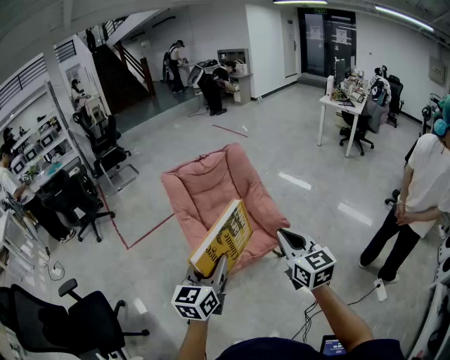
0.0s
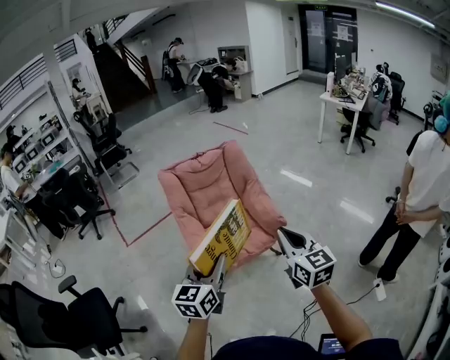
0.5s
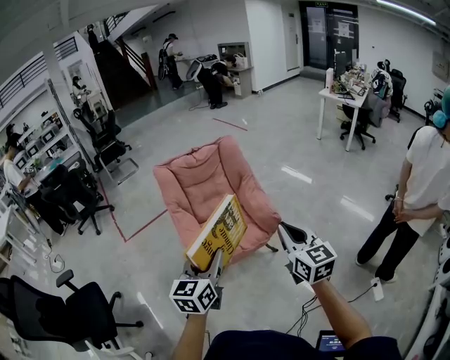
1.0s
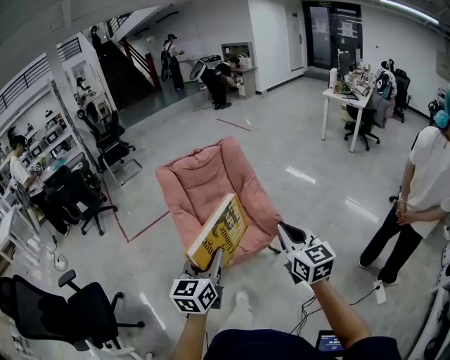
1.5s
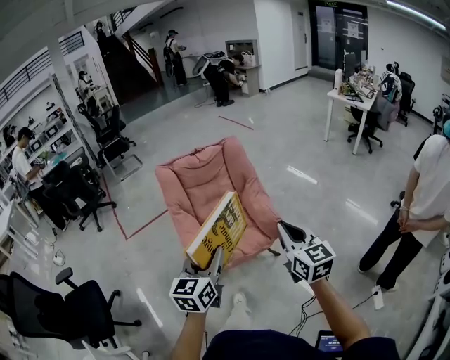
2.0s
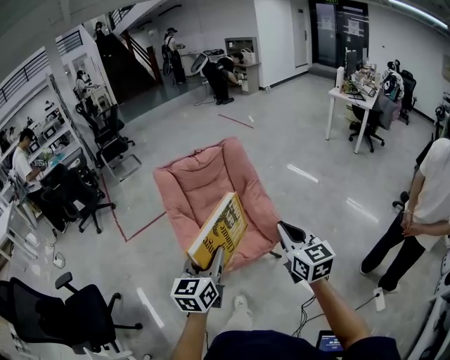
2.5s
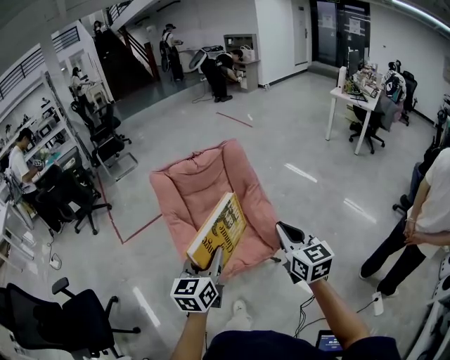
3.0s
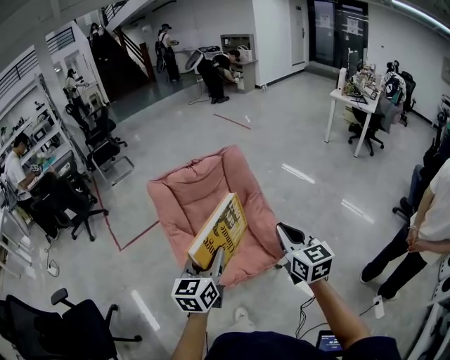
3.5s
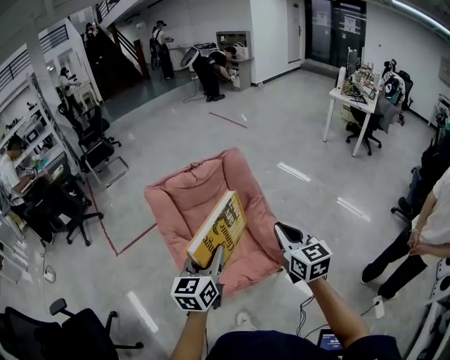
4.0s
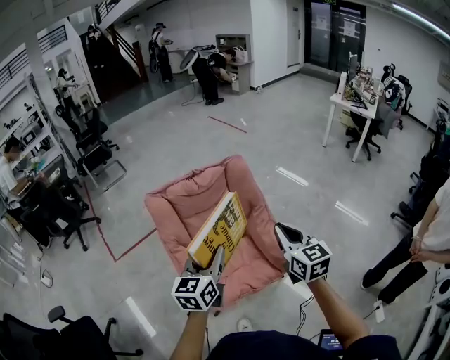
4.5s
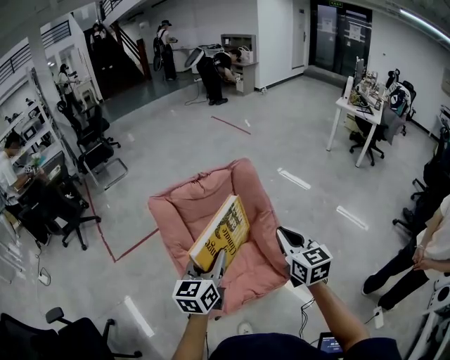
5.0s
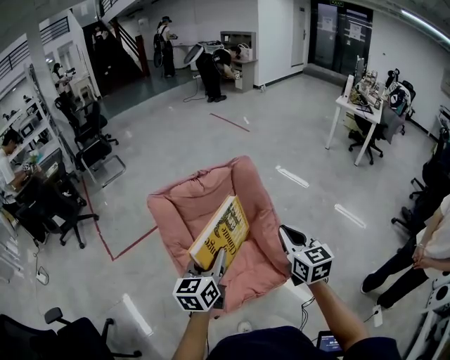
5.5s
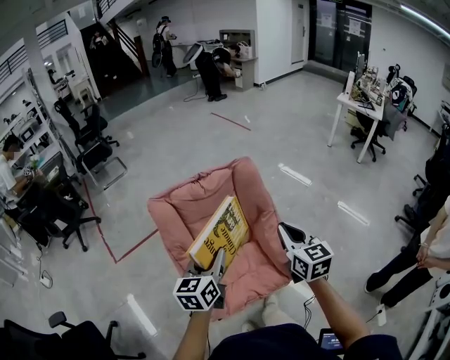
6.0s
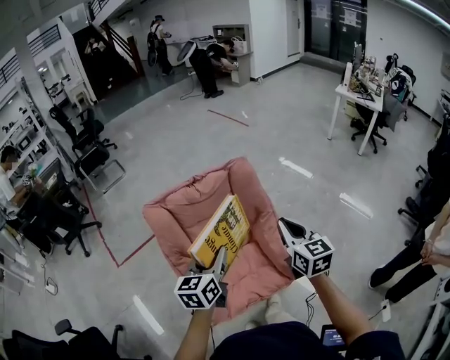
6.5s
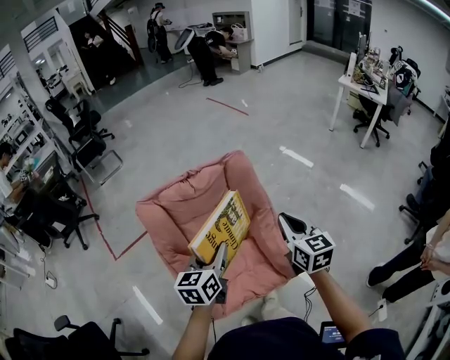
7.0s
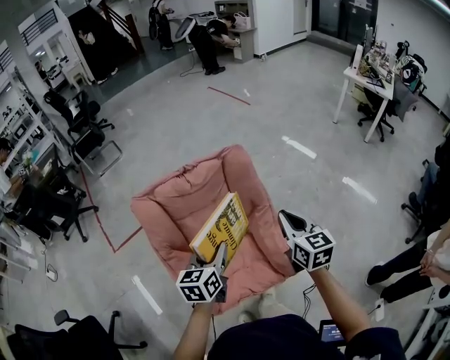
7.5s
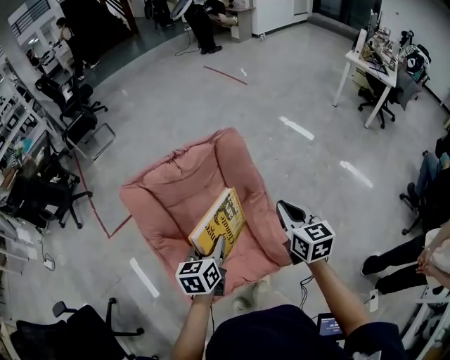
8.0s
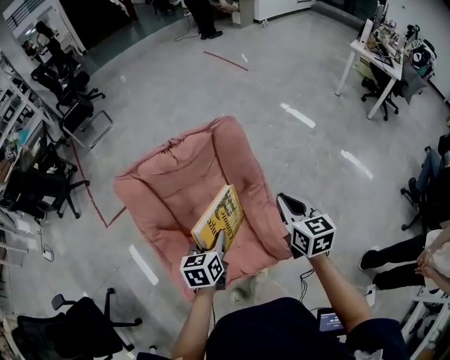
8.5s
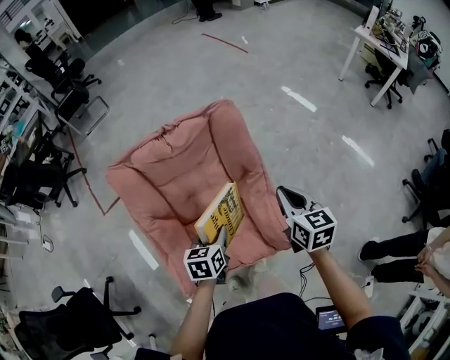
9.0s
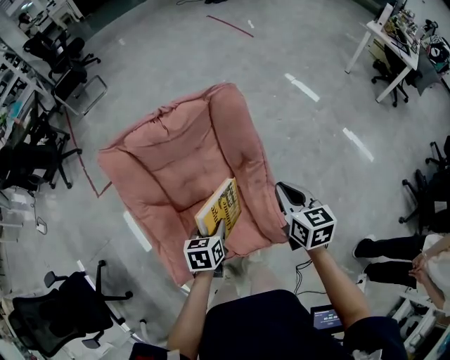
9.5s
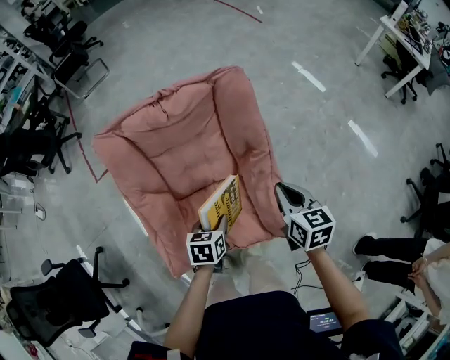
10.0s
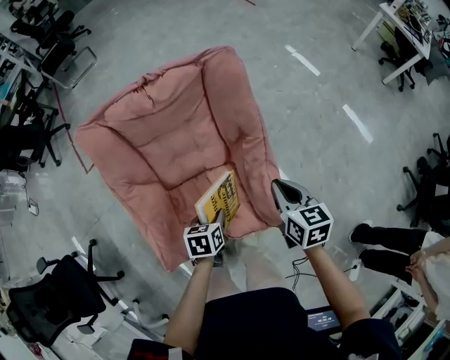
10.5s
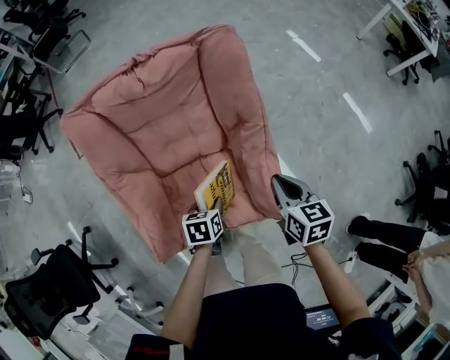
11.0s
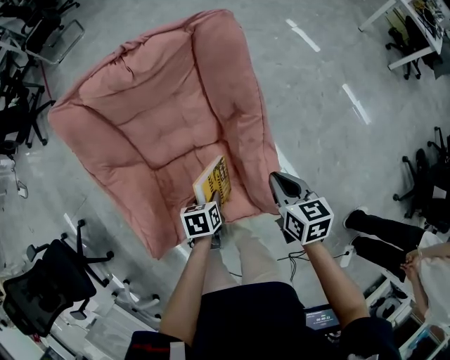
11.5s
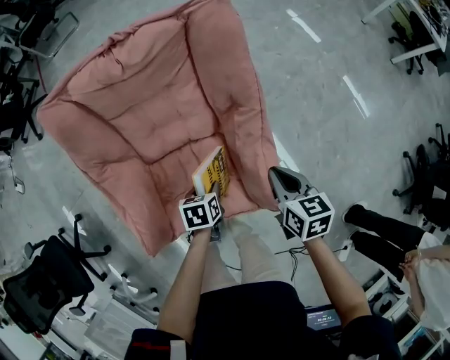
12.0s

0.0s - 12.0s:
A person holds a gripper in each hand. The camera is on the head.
0.0s - 2.0s: Both grippers move to the right, approximately 5 cm.
2.0s - 4.0s: Both grippers travel together forward, approximately 20 cm.
4.0s - 6.0s: The right gripper moves forward, roughly 10 cm. Meanwhile the left gripper heads forward and to the left, covering some 10 cm.
6.0s - 8.0s: The left gripper shifts approximately 15 cm downward, forward and to the right. Meanwhile the right gripper moves forward, to the right and downward, roughly 15 cm.
8.0s - 10.0s: The grippers both shift downward by approximately 15 cm. The left gripper turns by roughly 20 degrees.
10.0s - 12.0s: The two grippers go about 15 cm downward.

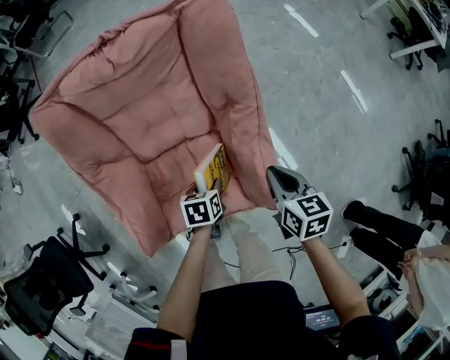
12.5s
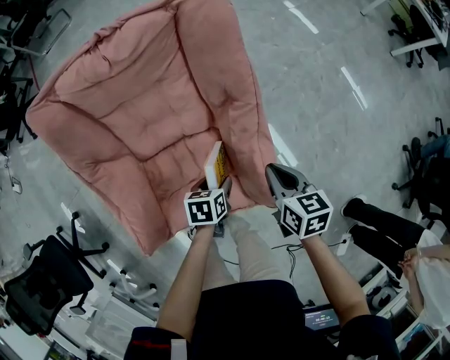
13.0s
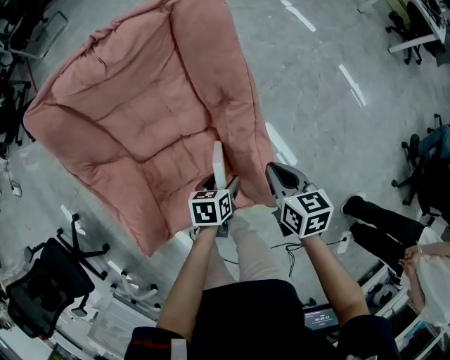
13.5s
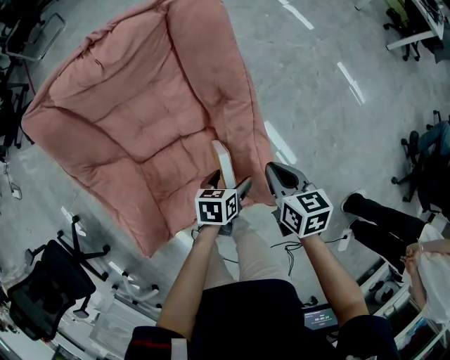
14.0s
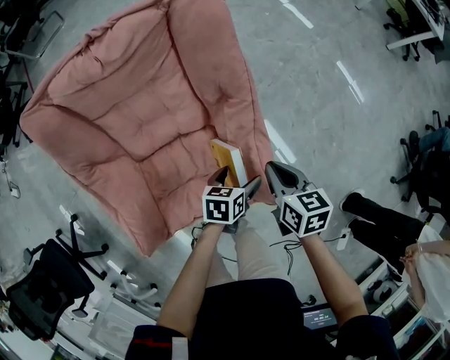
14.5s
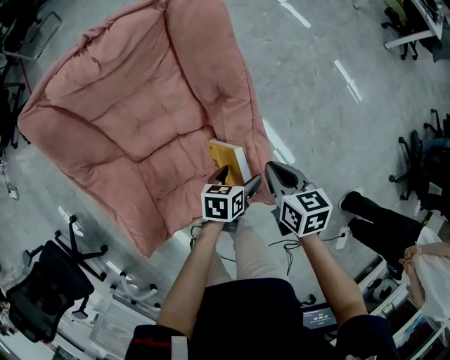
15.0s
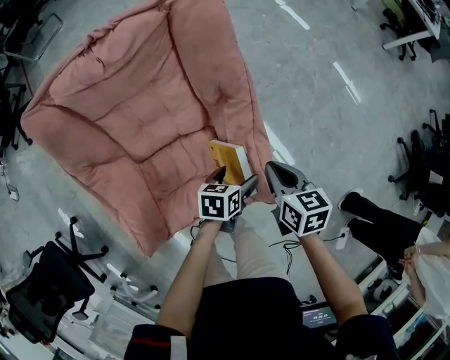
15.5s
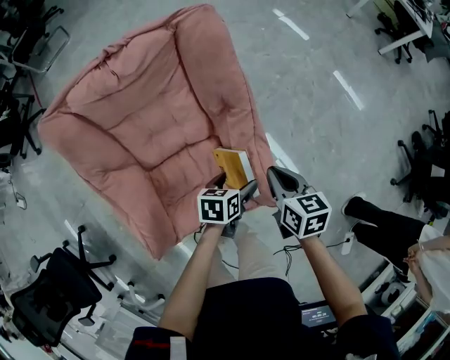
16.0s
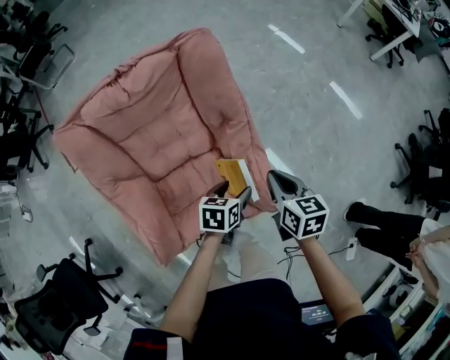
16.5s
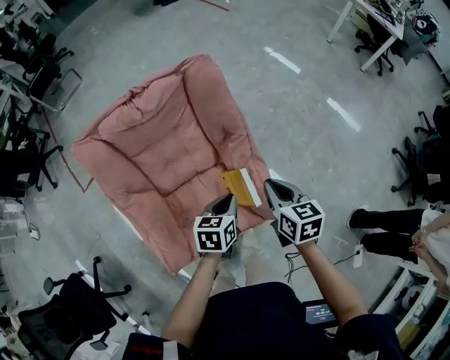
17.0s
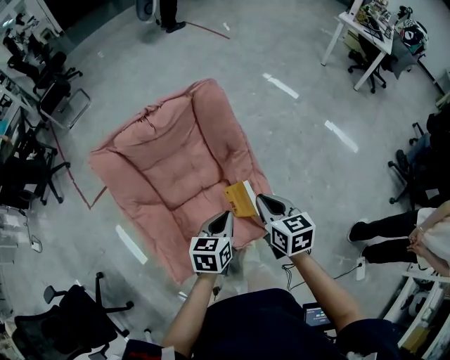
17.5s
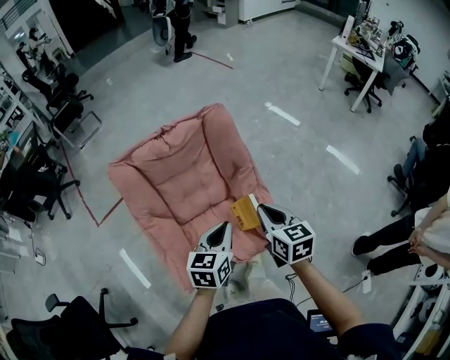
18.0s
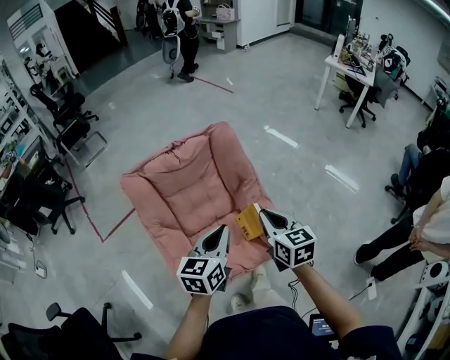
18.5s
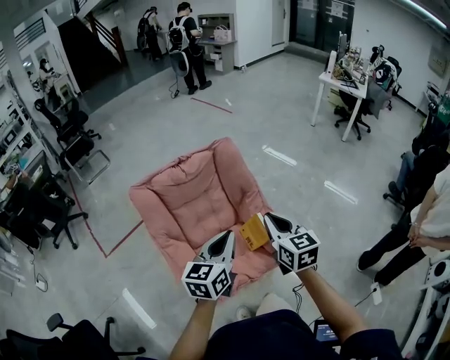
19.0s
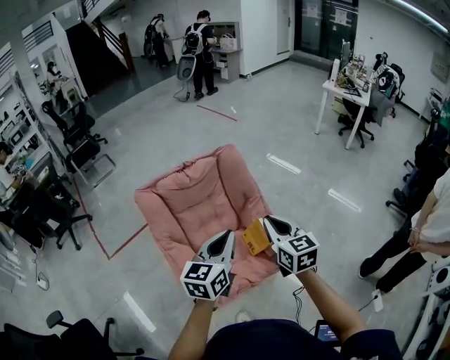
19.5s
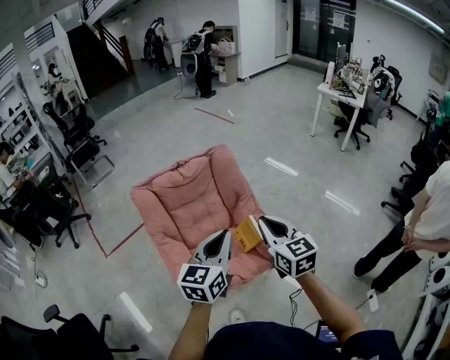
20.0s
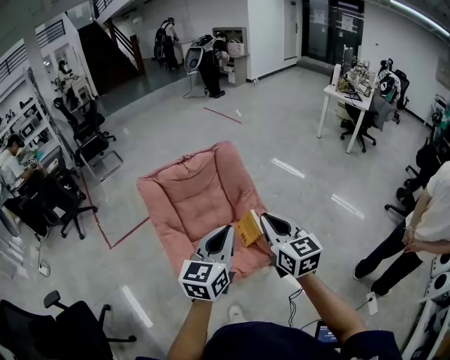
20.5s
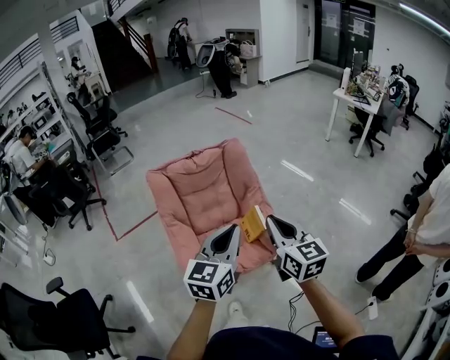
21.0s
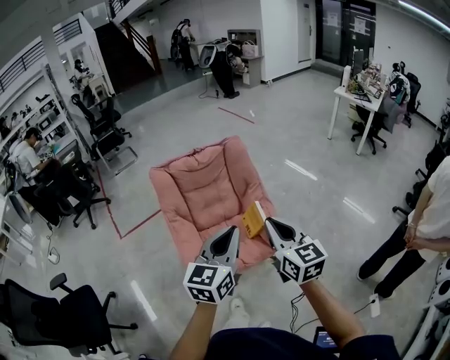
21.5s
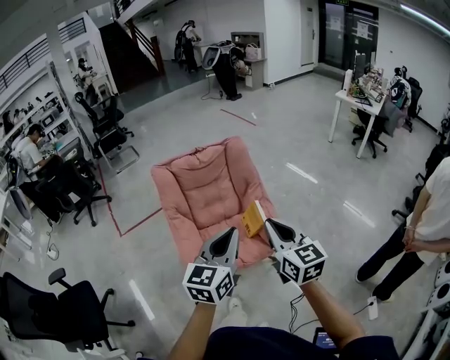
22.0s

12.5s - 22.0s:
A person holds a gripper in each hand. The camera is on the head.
12.5s - 14.5s: The left gripper goes some 10 cm to the right, turns by roughly 20 degrees, and opens.
14.5s - 16.5s: Both grippers move upward, about 10 cm.
16.5s - 18.0s: The right gripper goes approximately 20 cm upward, backward and to the left. The left gripper shifts approximately 25 cm upward and to the left, rotates roughly 30 degrees, and closes.
18.0s - 20.0s: The grippers both shift upward and backward by roughly 20 cm. The left gripper changes its angle by approximately 20 degrees.
20.0s - 22.0s: The two grippers go some 15 cm backward.

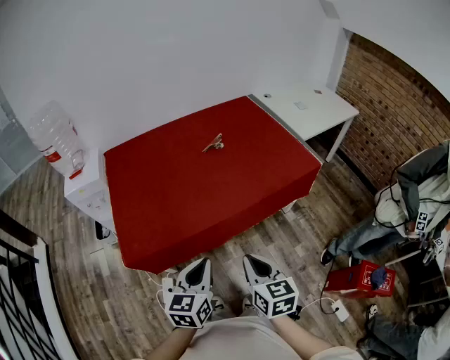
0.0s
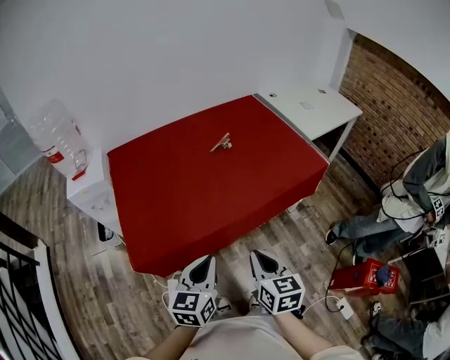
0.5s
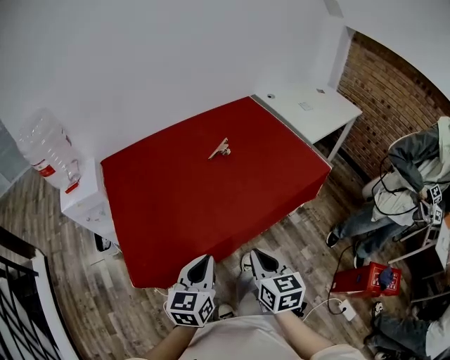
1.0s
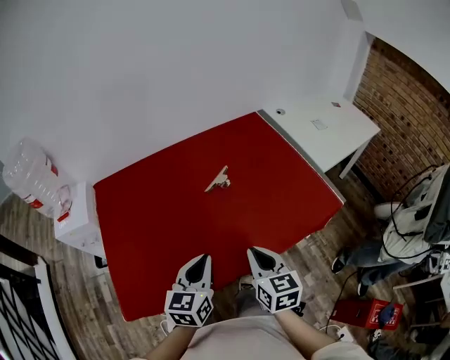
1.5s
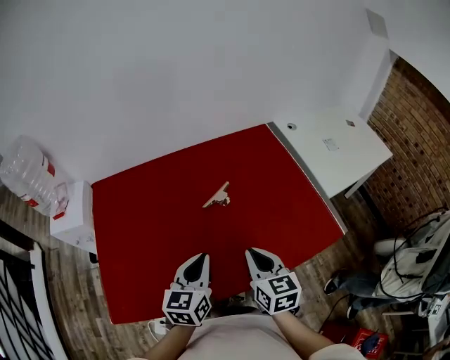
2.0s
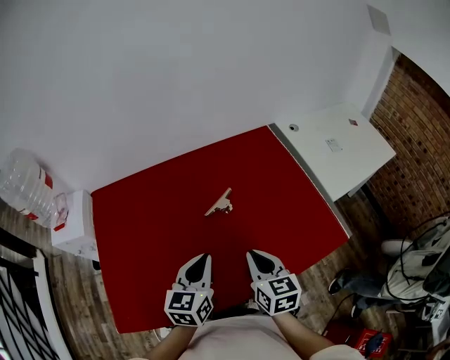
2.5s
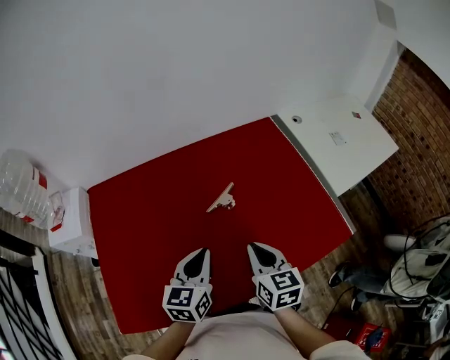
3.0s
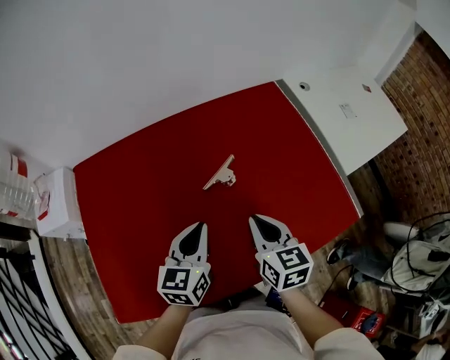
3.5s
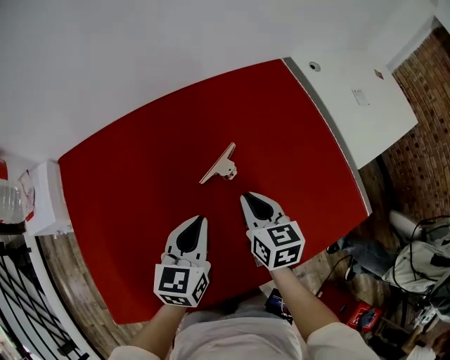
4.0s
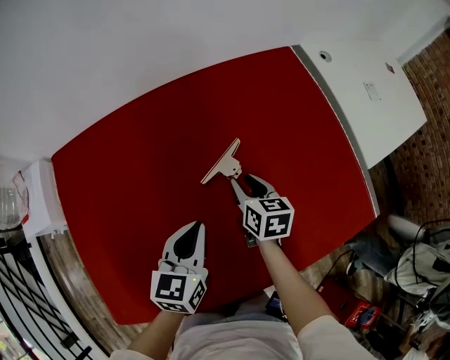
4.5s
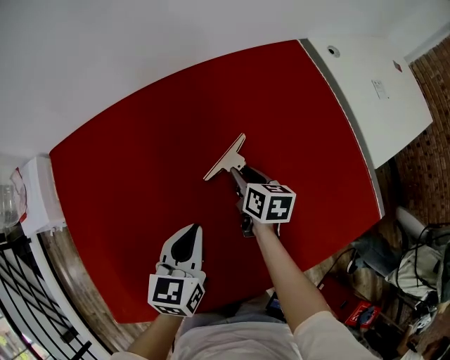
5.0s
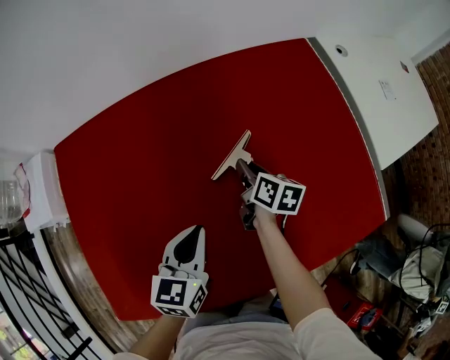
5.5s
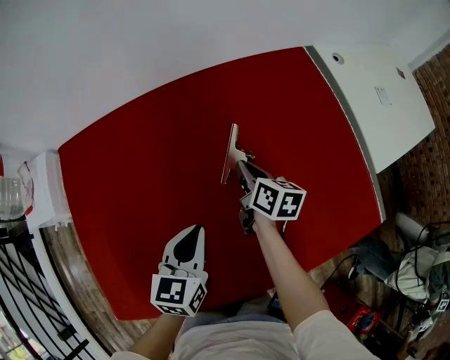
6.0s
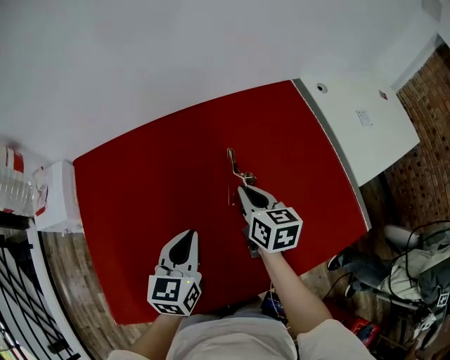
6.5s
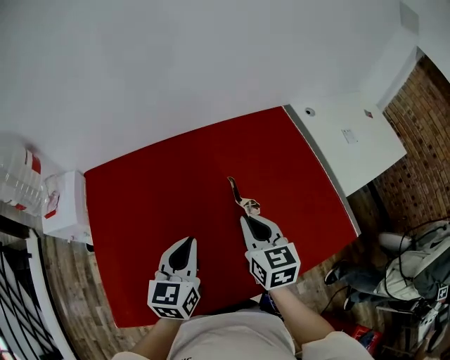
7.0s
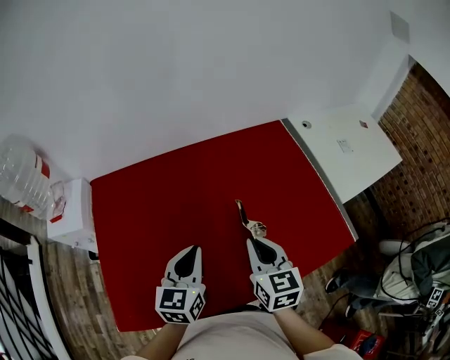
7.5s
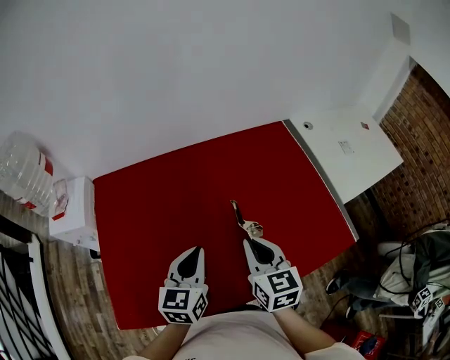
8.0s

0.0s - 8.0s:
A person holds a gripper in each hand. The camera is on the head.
0.0s - 2.0s: The two grippers go roughly 40 cm forward.
2.0s - 4.0s: The grippers both shift forward and downward by roughly 20 cm.
4.0s - 6.0s: The left gripper moves about 5 cm, while the right gripper shifts some 15 cm forward and downward, rotates approximately 20 degrees, and opens, then closes again.
6.0s - 8.0s: The right gripper travels upward and backward by approximately 30 cm, and rotates some 40 degrees. The left gripper goes about 15 cm upward and backward.
